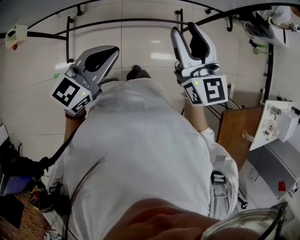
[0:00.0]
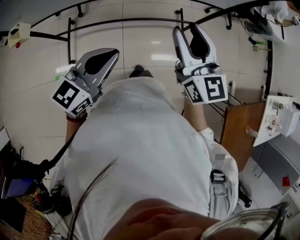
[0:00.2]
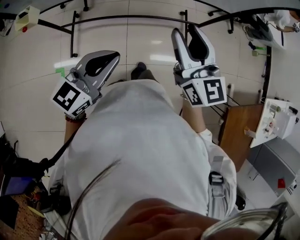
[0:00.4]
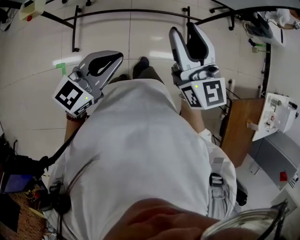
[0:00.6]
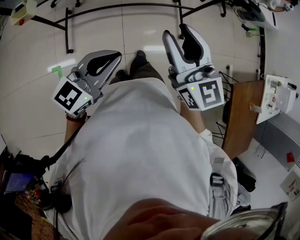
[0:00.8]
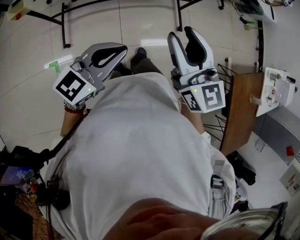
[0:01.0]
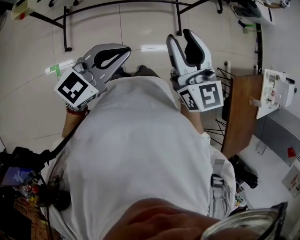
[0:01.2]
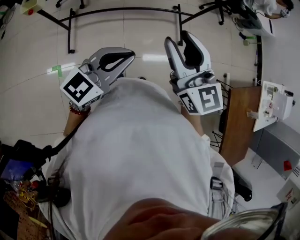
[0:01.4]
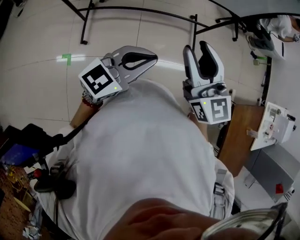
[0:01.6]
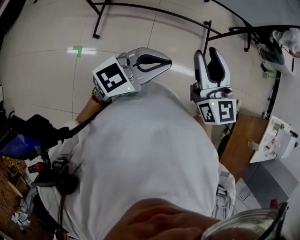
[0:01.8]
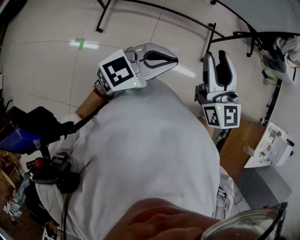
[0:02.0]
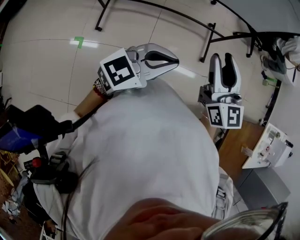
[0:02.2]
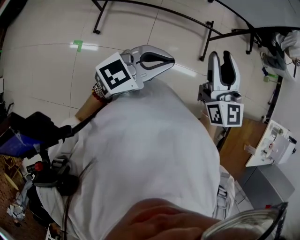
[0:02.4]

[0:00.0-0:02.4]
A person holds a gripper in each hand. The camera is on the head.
0:00.0 to 0:01.2: The two grippers go approximately 25 cm backward.
0:01.2 to 0:02.4: The two grippers go some 10 cm to the right.

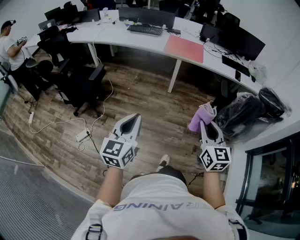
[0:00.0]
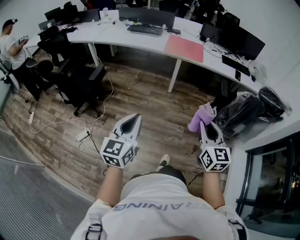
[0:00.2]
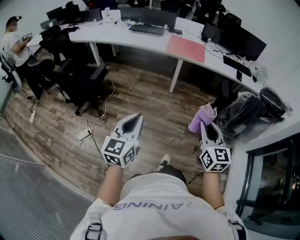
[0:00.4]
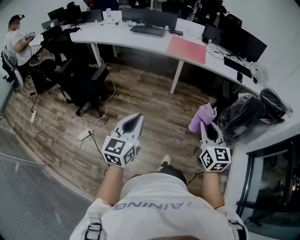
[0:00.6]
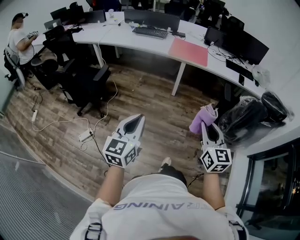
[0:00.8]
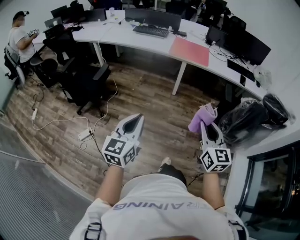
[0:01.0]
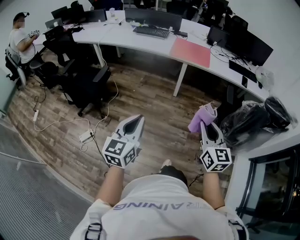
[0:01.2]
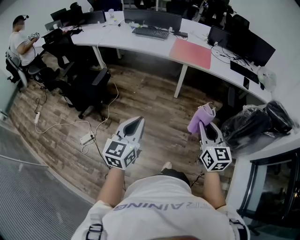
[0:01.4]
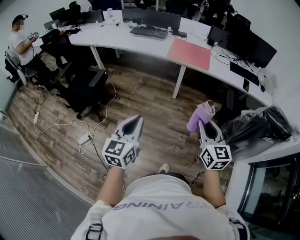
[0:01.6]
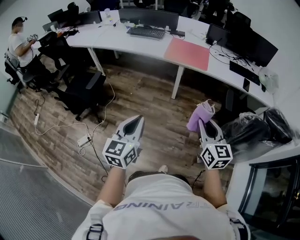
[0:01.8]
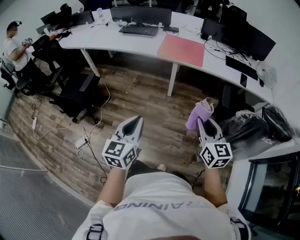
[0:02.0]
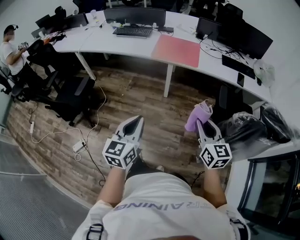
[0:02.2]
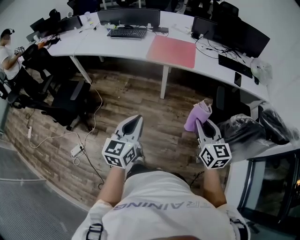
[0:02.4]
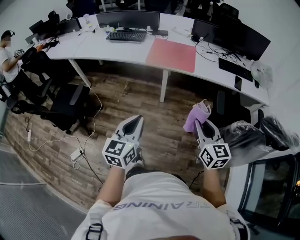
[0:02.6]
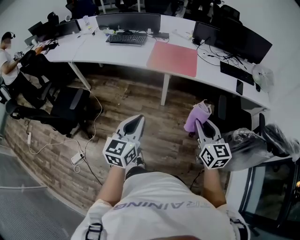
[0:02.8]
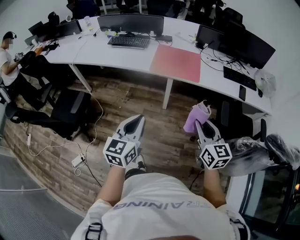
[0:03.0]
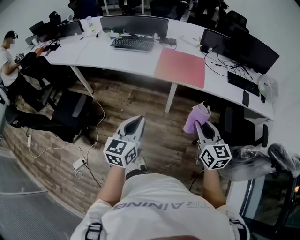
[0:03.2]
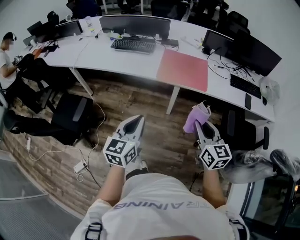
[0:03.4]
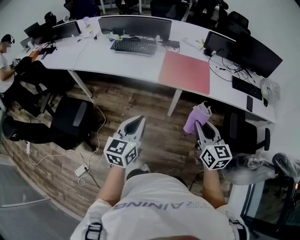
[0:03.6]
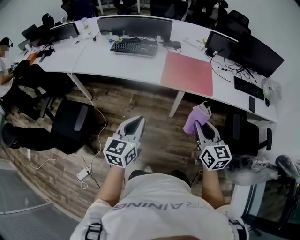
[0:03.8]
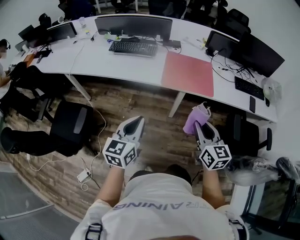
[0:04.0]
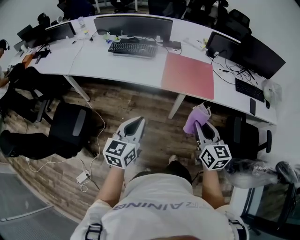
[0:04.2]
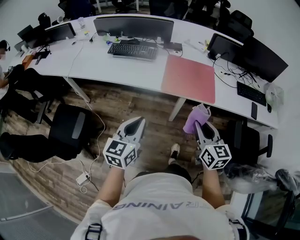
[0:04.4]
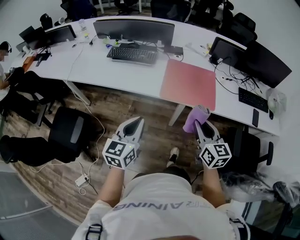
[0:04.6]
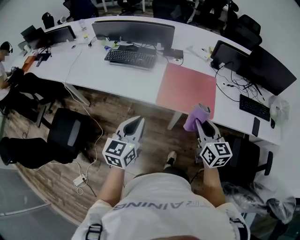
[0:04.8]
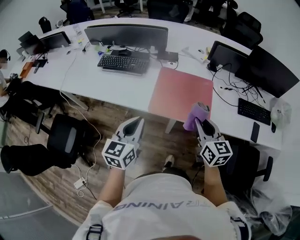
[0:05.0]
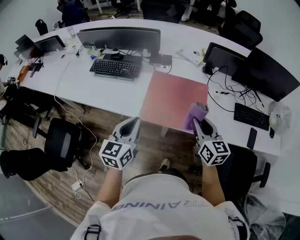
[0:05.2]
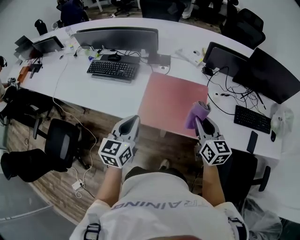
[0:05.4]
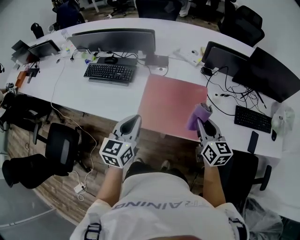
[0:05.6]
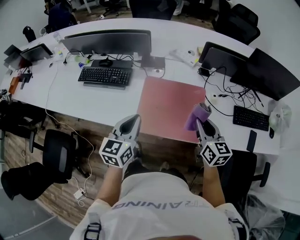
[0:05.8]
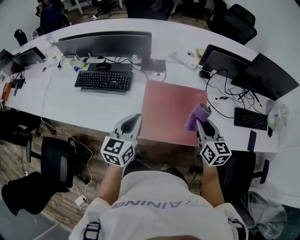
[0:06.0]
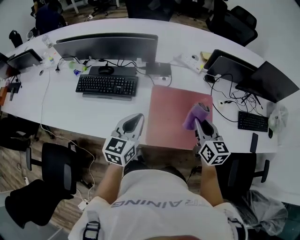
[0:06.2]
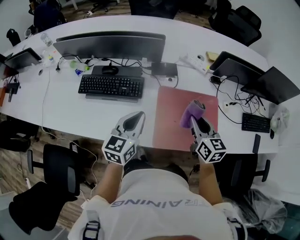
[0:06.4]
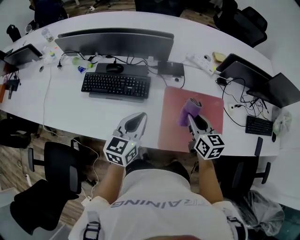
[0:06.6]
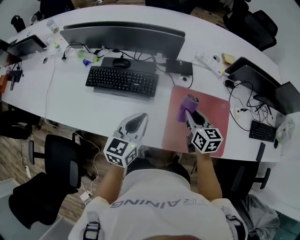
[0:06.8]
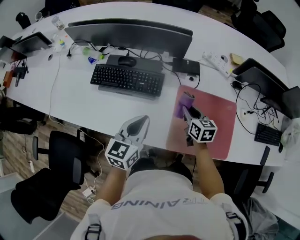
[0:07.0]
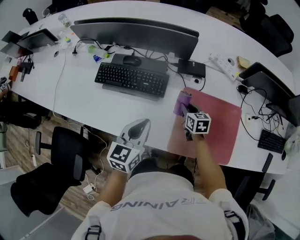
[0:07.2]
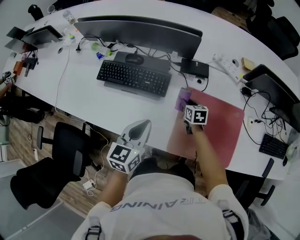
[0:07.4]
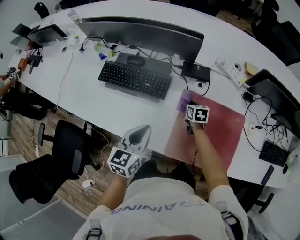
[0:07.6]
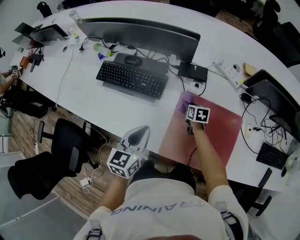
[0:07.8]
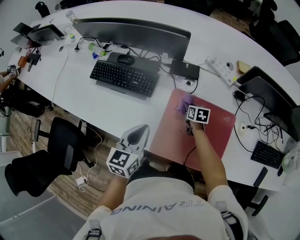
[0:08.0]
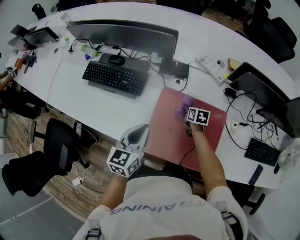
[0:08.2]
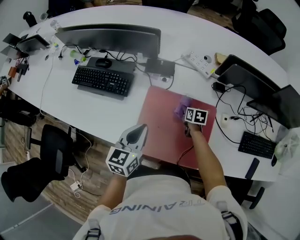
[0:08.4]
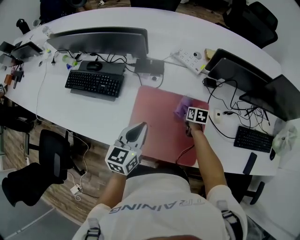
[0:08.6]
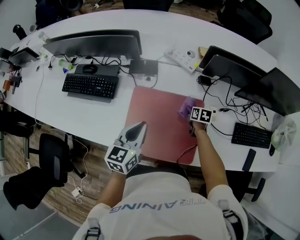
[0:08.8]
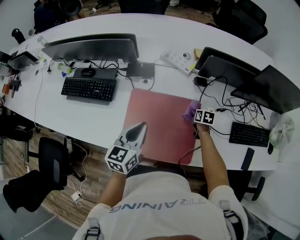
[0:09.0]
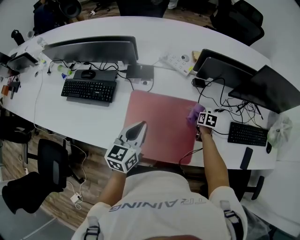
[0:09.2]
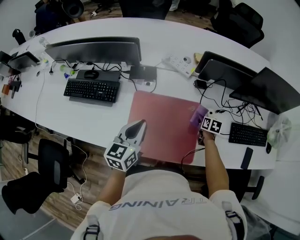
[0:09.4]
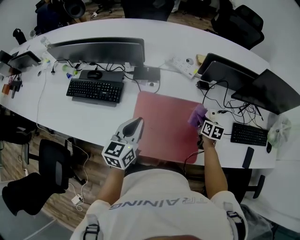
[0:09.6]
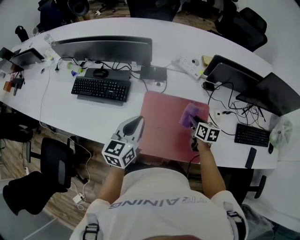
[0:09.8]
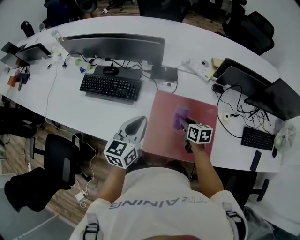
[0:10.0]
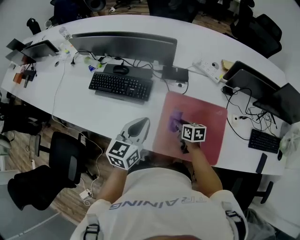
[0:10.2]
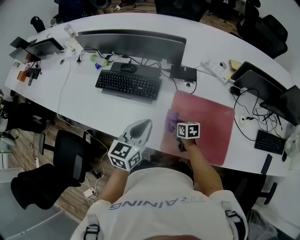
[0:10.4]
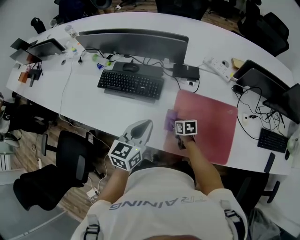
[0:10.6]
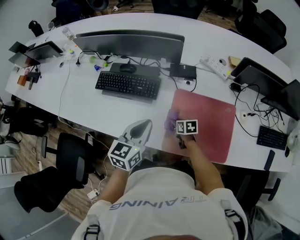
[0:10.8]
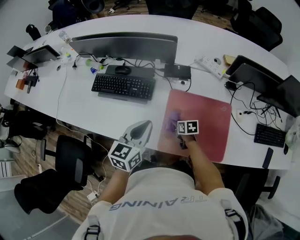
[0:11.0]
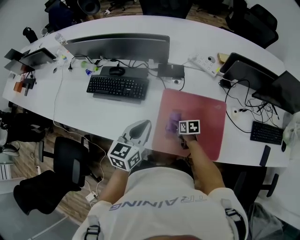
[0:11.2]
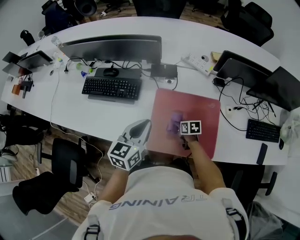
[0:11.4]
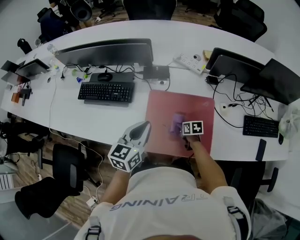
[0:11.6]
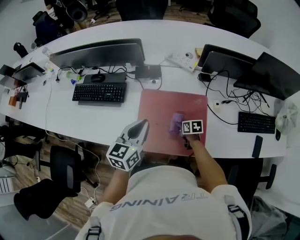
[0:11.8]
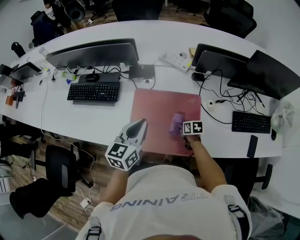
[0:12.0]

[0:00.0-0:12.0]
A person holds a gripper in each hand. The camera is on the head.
0:00.0 to 0:01.6: Both grippers move forward, some 15 cm.
0:01.6 to 0:03.0: Both grippers travel together forward, about 25 cm.
0:03.0 to 0:04.4: Both grippers travel together forward and to the left, approximately 25 cm.
0:04.4 to 0:06.0: Both grippers are carried forward, approximately 40 cm.
0:06.0 to 0:07.6: The right gripper is displaced downward, forward and to the left by about 40 cm, and points its fingers some 30 degrees further downward. Meanwhile the left gripper goes approximately 15 cm to the left, forward and downward.
0:07.6 to 0:09.0: The two grippers go about 30 cm to the right.
0:09.0 to 0:10.4: The left gripper shifts roughly 20 cm to the left. The right gripper is displaced to the left by roughly 40 cm, and turns by some 20 degrees.
0:10.4 to 0:12.0: The grippers both shift to the right by some 25 cm.

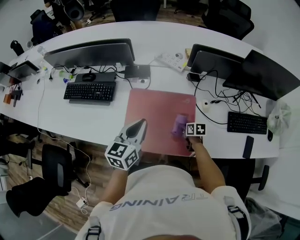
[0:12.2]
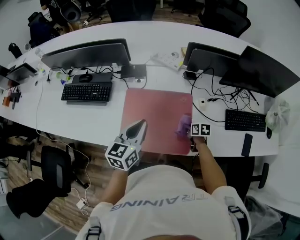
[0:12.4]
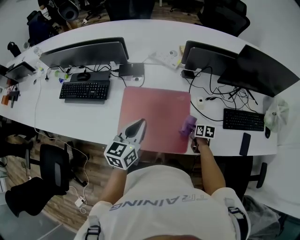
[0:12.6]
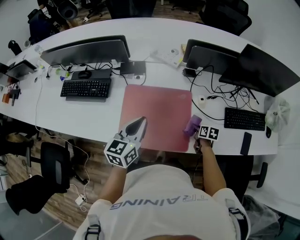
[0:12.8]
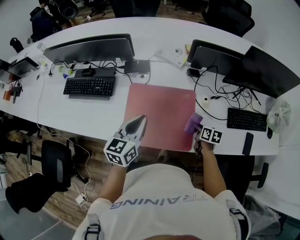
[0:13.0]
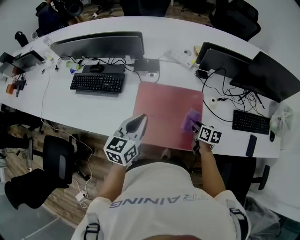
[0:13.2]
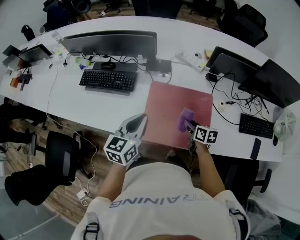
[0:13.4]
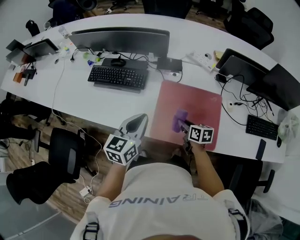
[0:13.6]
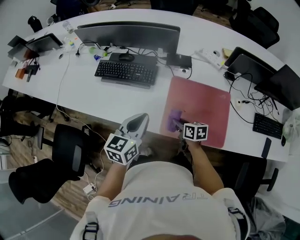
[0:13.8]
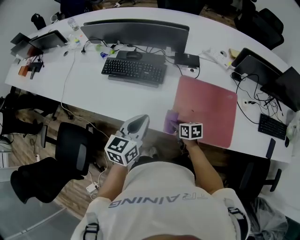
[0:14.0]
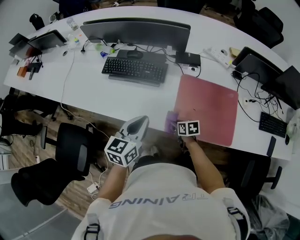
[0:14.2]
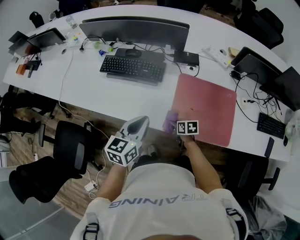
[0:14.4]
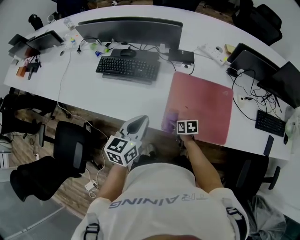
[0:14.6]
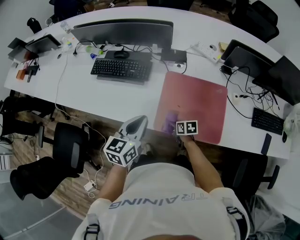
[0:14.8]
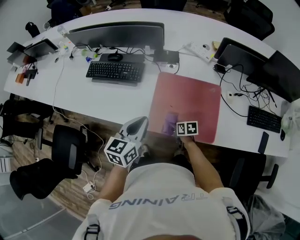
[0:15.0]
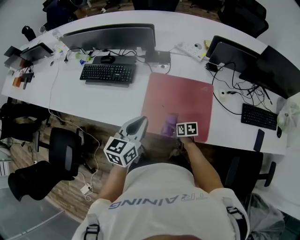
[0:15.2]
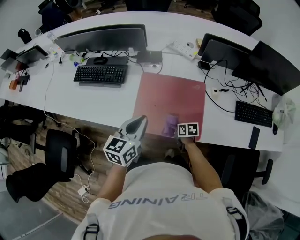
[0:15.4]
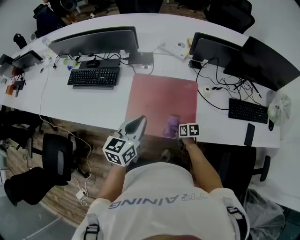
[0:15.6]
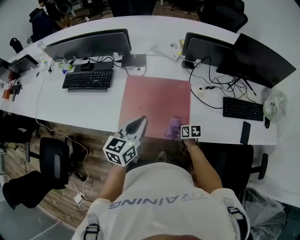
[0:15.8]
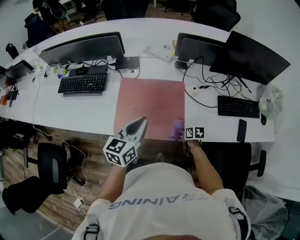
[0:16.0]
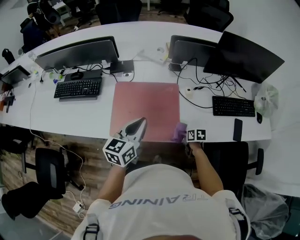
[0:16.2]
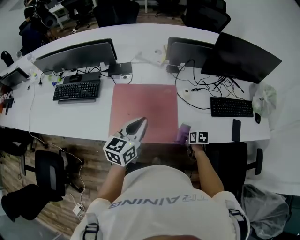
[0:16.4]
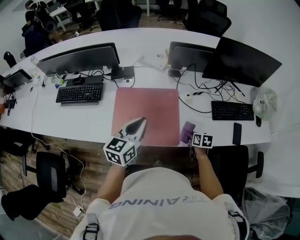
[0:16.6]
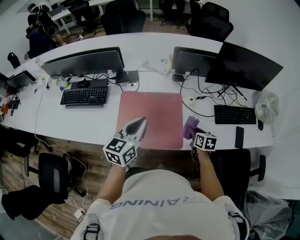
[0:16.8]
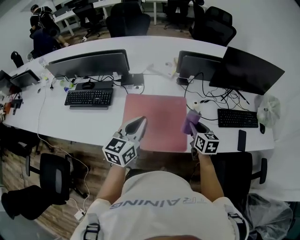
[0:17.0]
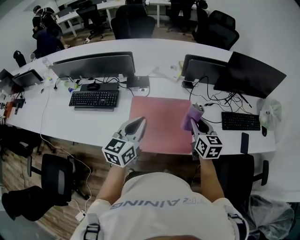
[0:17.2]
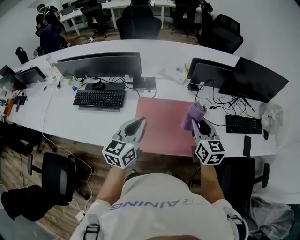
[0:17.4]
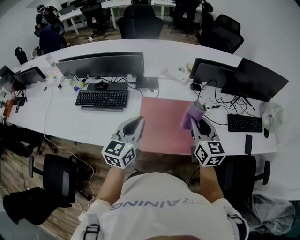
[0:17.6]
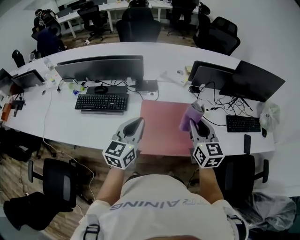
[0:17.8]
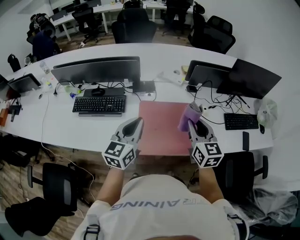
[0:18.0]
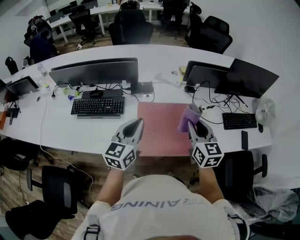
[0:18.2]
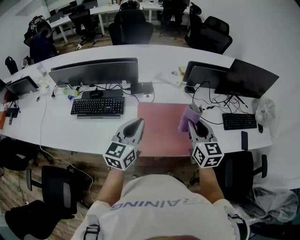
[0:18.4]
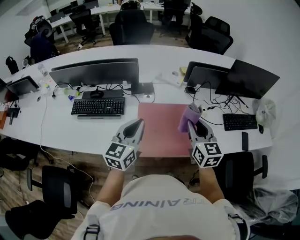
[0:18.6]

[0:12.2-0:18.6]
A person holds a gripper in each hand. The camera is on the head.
0:12.2 to 0:13.8: The two grippers go some 25 cm to the left.
0:13.8 to 0:15.4: The left gripper goes approximately 15 cm to the right, while the right gripper is displaced to the right, downward and backward by some 20 cm.
0:15.4 to 0:17.0: The right gripper is displaced upward and to the right by about 25 cm, and turns by about 40 degrees, while the left gripper travels to the right and upward by about 10 cm.
0:17.0 to 0:18.6: The right gripper shifts some 25 cm to the left and upward, and turns by about 20 degrees. The left gripper moves to the left, about 15 cm.

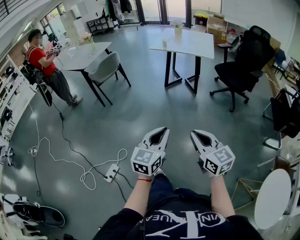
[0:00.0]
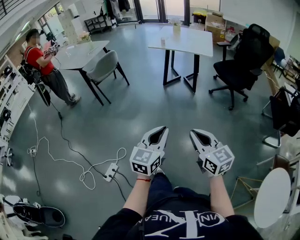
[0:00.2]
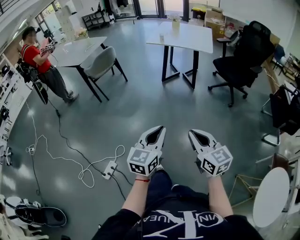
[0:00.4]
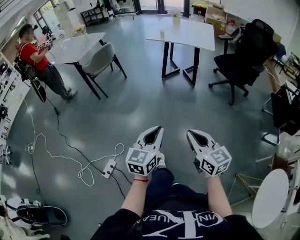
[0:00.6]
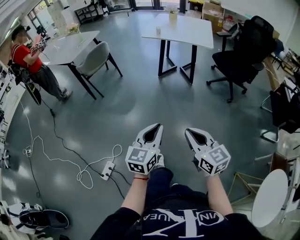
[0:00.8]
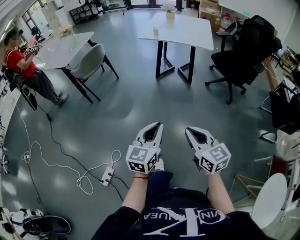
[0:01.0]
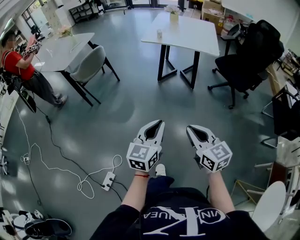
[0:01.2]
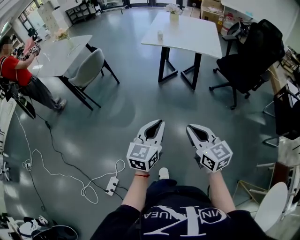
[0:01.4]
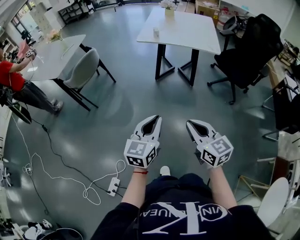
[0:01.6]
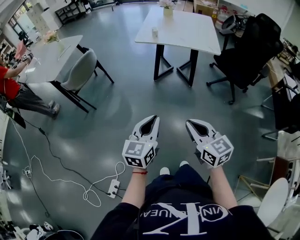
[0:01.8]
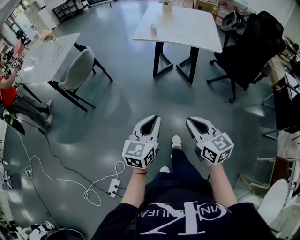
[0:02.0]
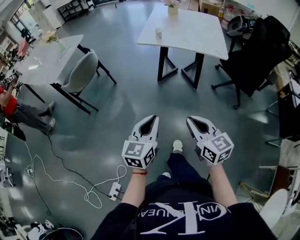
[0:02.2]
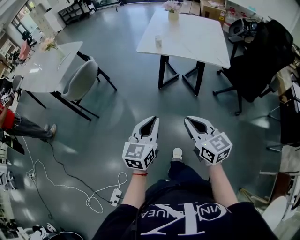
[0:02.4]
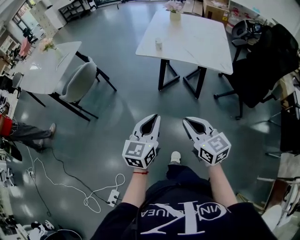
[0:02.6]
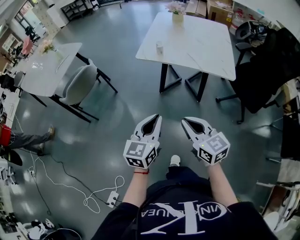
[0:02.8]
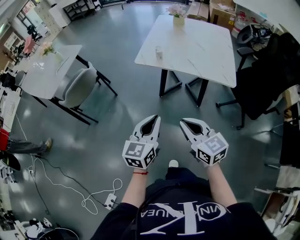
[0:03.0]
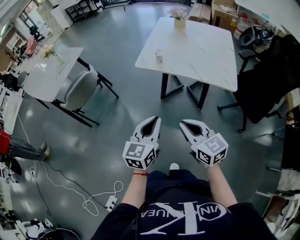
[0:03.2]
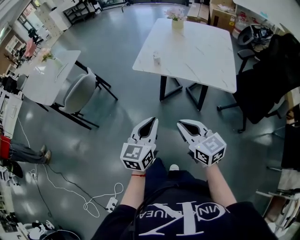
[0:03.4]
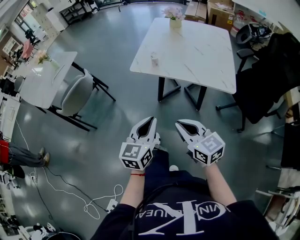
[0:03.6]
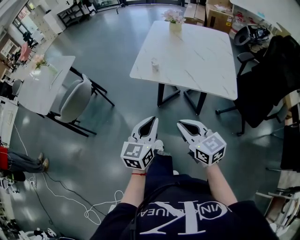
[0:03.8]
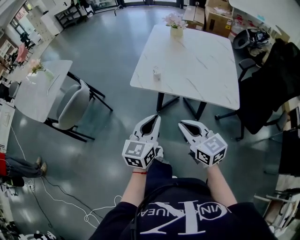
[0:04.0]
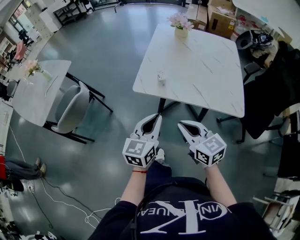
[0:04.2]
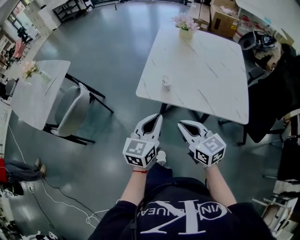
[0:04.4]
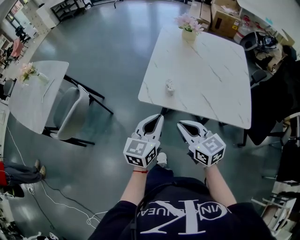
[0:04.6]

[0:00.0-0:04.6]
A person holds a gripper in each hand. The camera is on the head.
0:00.0 to 0:01.6: The two grippers go about 35 cm forward.
0:01.6 to 0:03.0: The two grippers go some 30 cm forward.
0:03.0 to 0:04.6: Both grippers travel together forward, approximately 30 cm.
